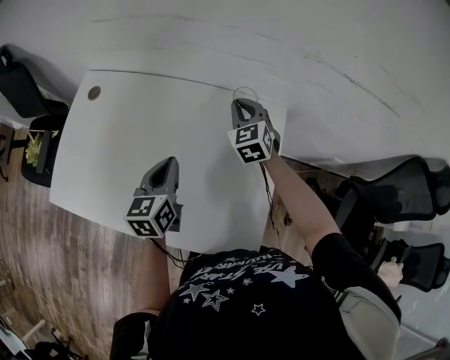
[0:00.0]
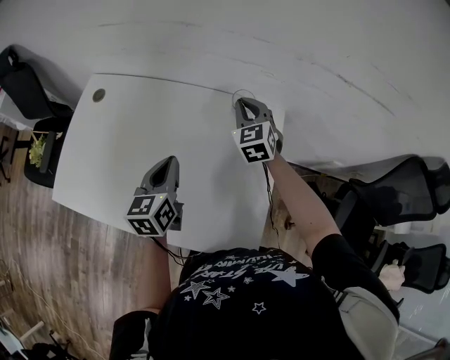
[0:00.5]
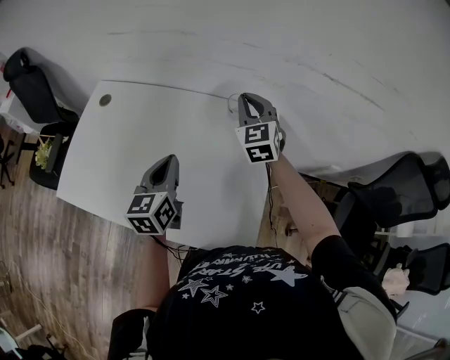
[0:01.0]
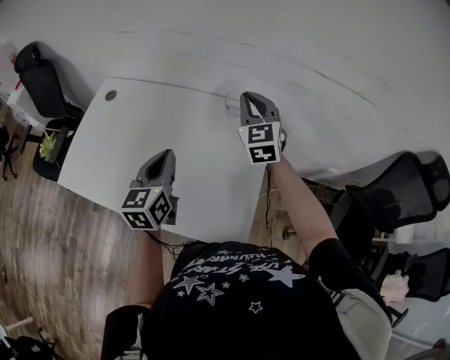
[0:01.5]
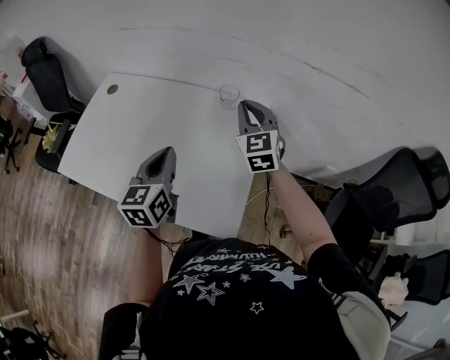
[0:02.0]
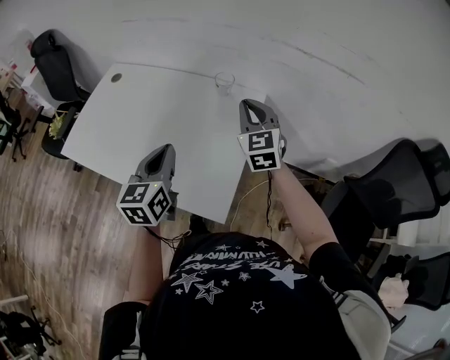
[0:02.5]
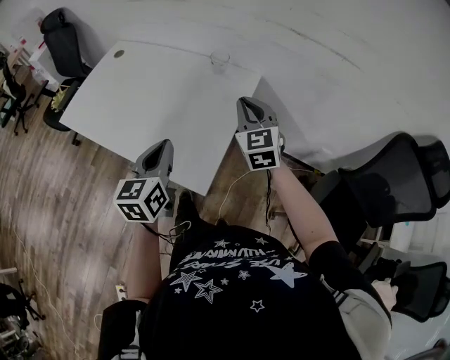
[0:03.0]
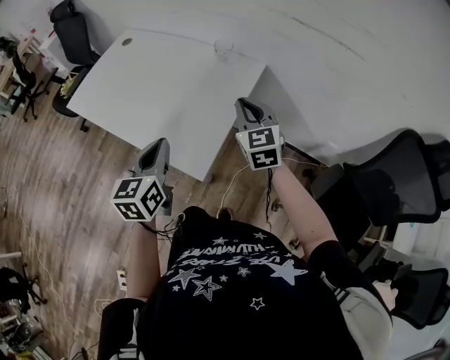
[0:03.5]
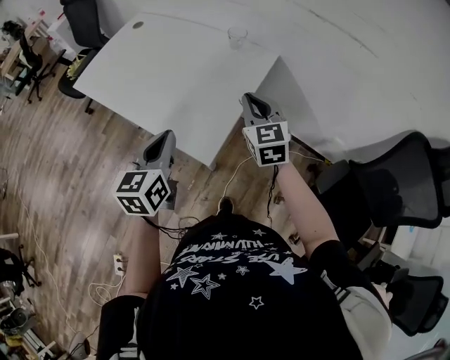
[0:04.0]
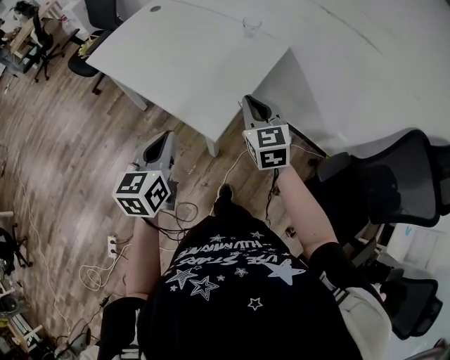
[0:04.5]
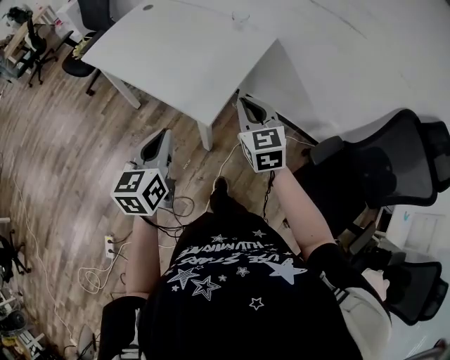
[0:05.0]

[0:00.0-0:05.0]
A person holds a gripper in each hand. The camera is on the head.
0:00.0 to 0:02.5: The left gripper heads backward, to the right and upward, covering roughly 25 cm, while the right gripper travels backward, upward and to the right by approximately 25 cm.
0:02.5 to 0:05.0: Both grippers travel together backward, some 30 cm.

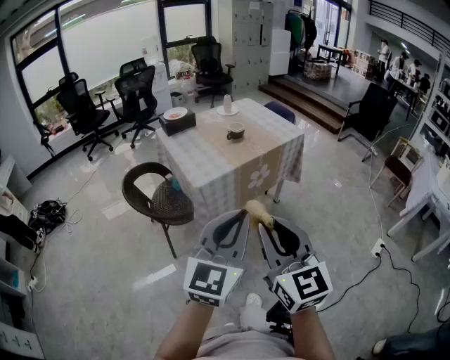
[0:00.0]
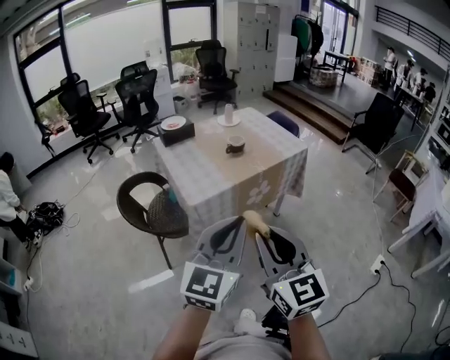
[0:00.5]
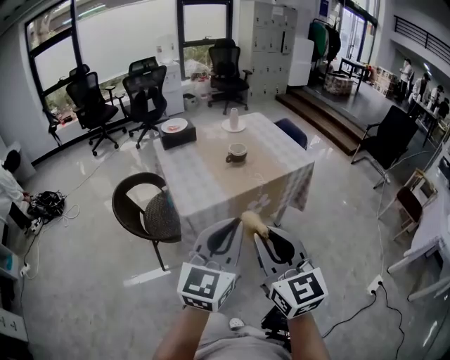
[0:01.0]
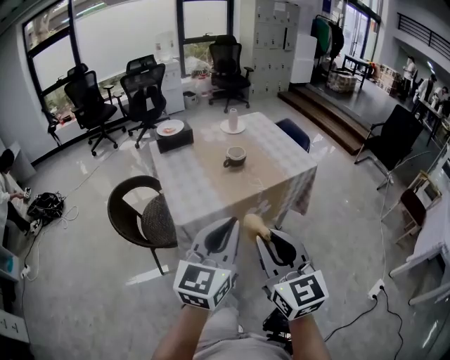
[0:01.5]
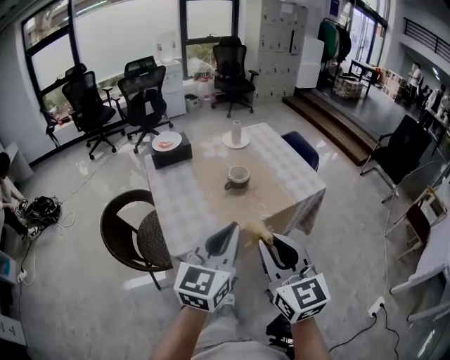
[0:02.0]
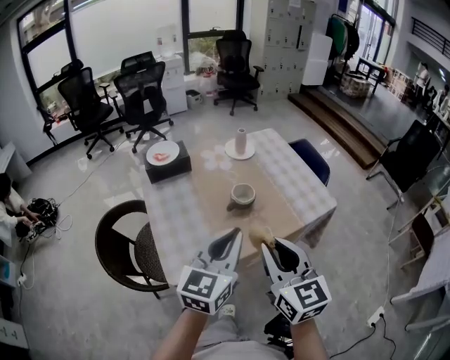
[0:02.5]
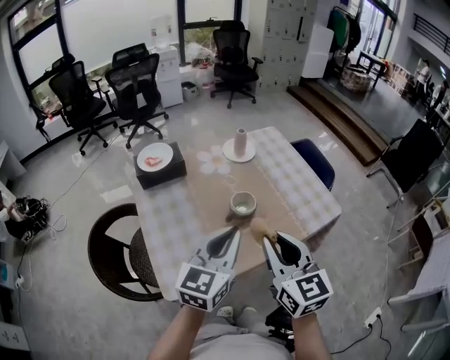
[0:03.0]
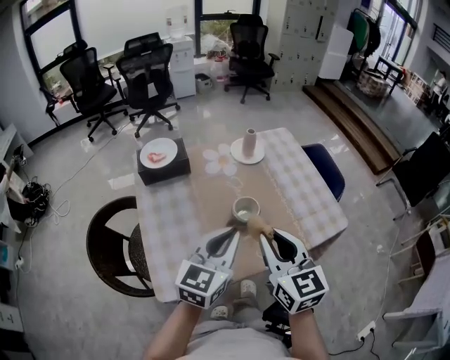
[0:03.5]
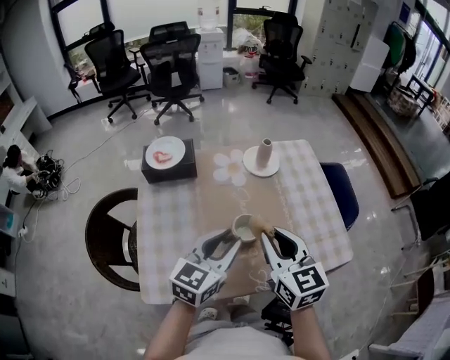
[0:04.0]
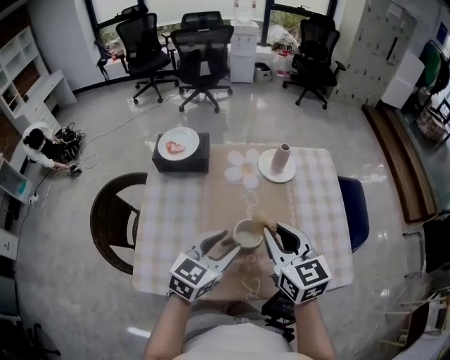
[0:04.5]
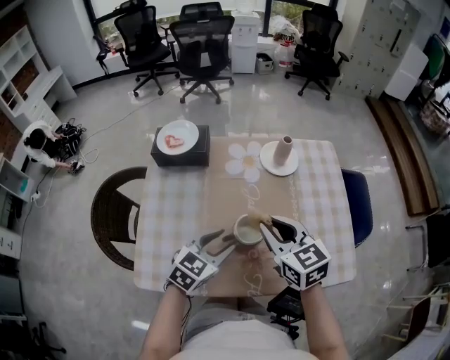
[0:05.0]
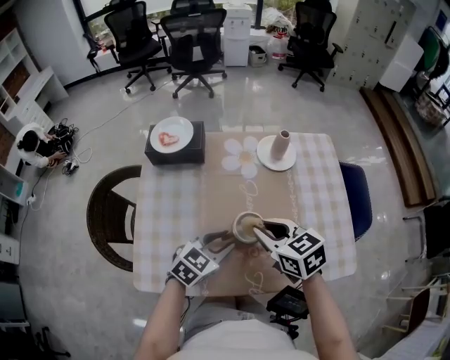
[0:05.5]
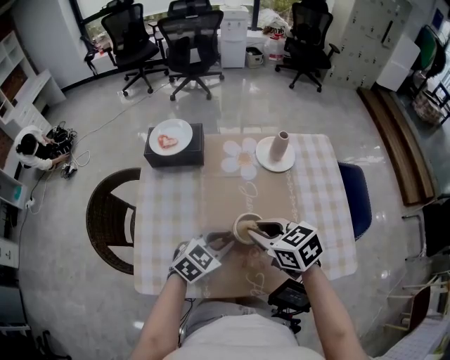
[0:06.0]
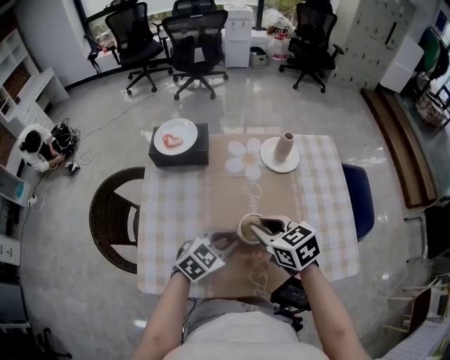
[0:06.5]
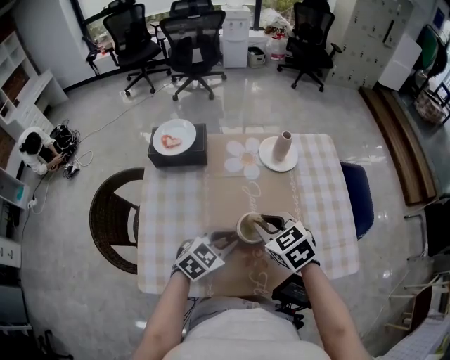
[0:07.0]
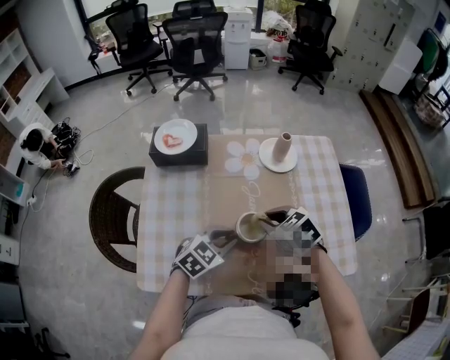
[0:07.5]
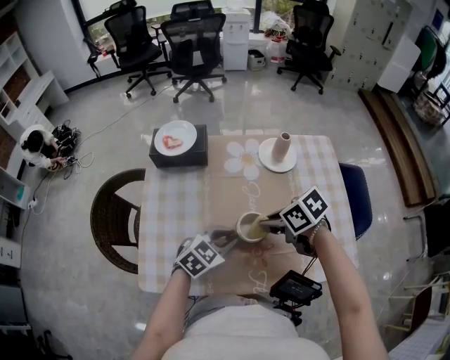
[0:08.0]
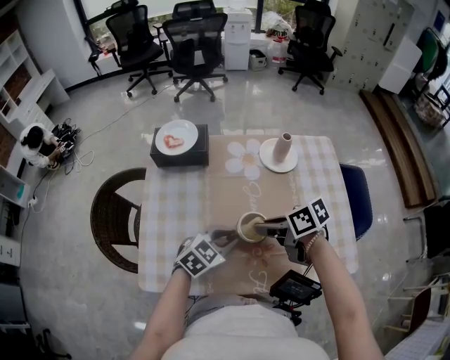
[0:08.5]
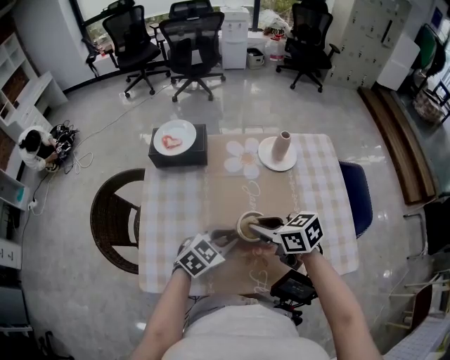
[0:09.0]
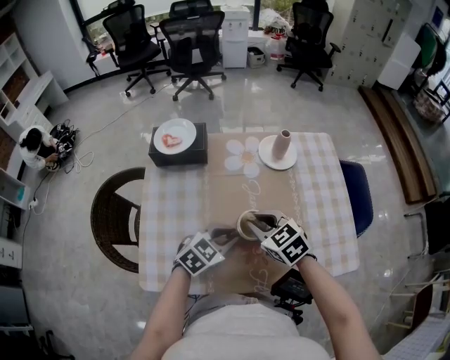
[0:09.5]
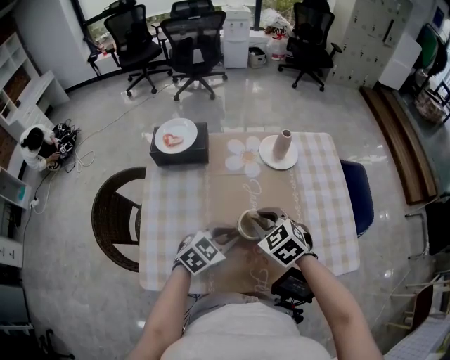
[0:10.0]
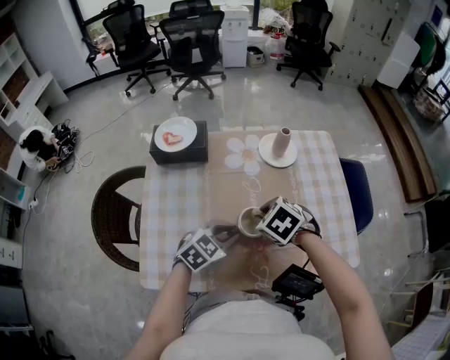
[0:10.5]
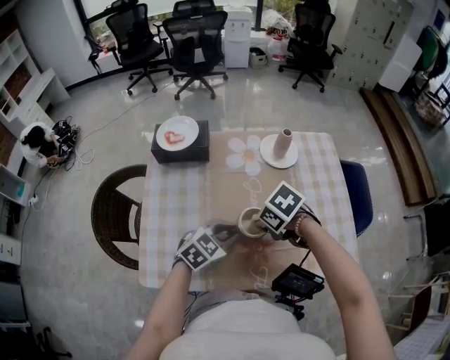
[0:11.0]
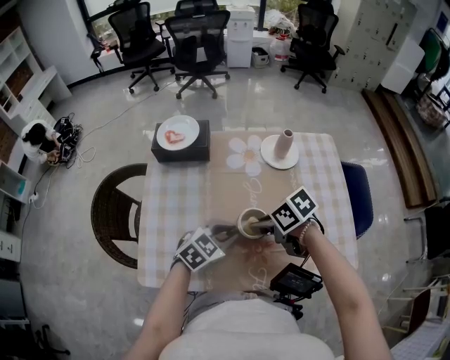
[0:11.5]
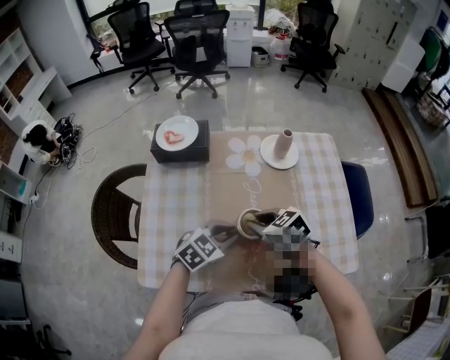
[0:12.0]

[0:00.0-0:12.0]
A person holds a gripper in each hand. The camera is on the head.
0:00.0 to 0:02.0: The two grippers go some 35 cm forward.
0:02.0 to 0:04.0: The two grippers go approximately 30 cm forward.
0:04.0 to 0:06.0: Both grippers move downward, some 10 cm. The left gripper swivels some 30 degrees, and opens and closes again. Meanwhile the right gripper turns by about 40 degrees.
0:06.0 to 0:08.0: The right gripper changes its angle by some 30 degrees.
0:08.0 to 0:10.0: The right gripper swivels some 40 degrees.
0:10.0 to 0:12.0: The right gripper changes its angle by roughly 20 degrees.

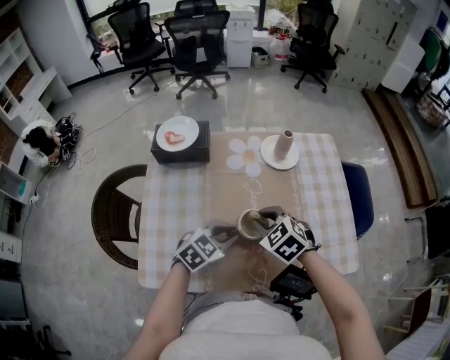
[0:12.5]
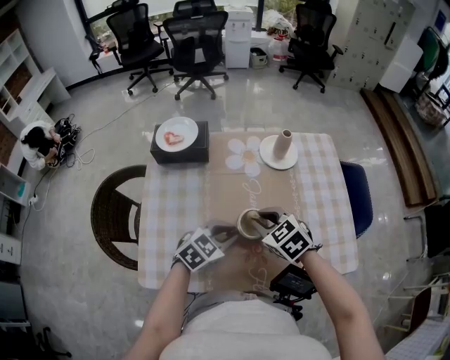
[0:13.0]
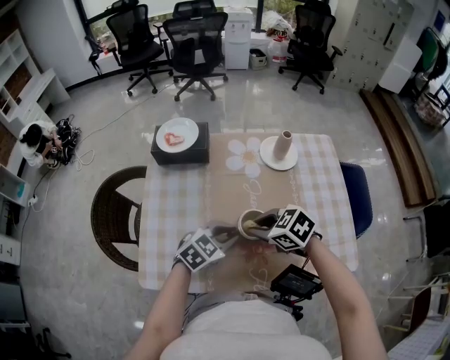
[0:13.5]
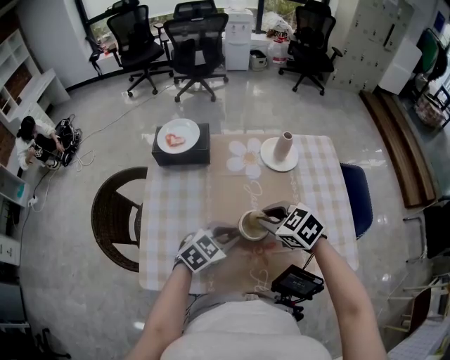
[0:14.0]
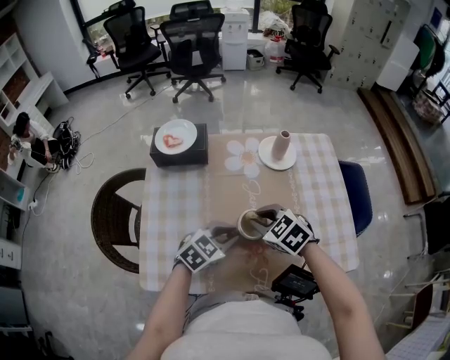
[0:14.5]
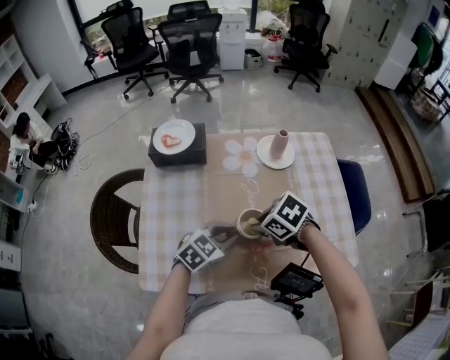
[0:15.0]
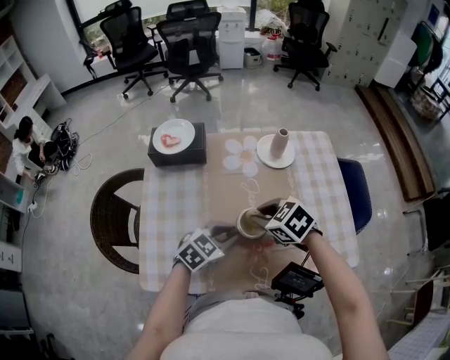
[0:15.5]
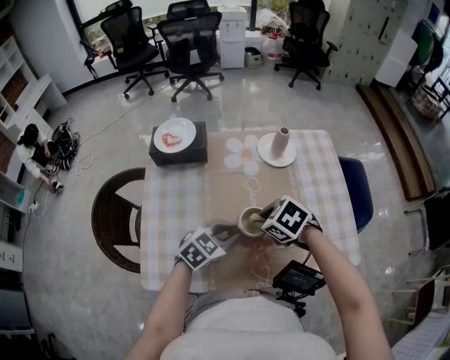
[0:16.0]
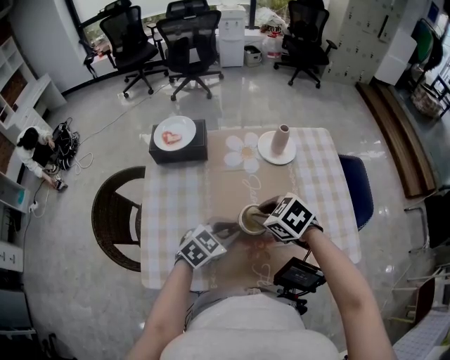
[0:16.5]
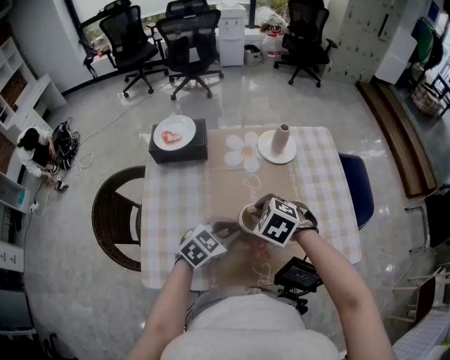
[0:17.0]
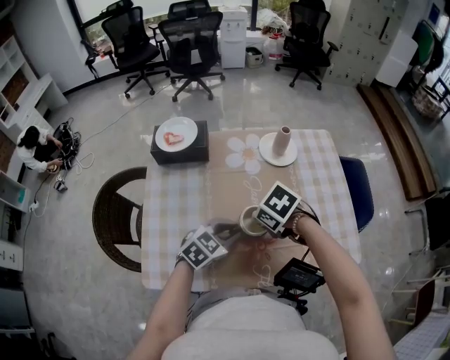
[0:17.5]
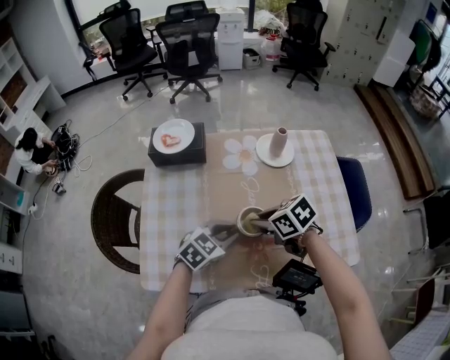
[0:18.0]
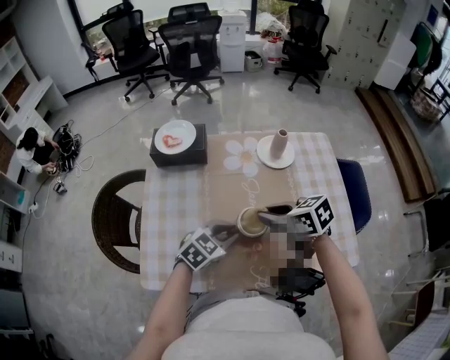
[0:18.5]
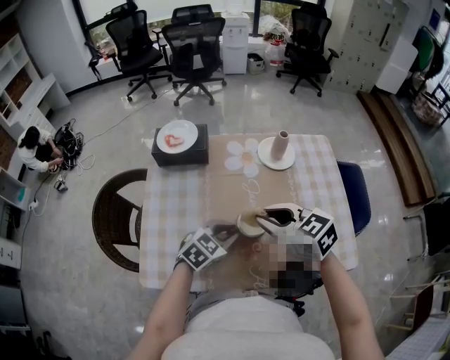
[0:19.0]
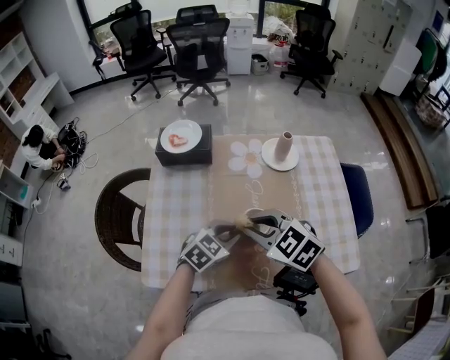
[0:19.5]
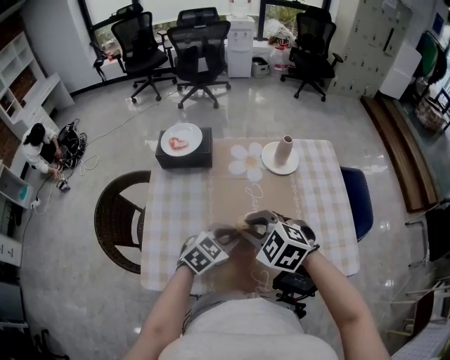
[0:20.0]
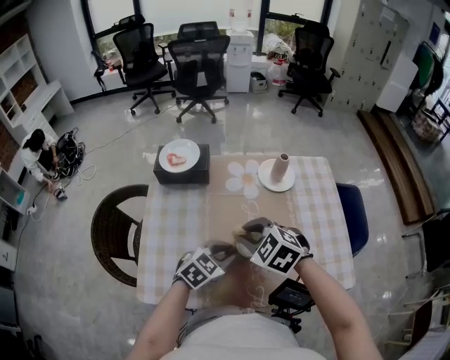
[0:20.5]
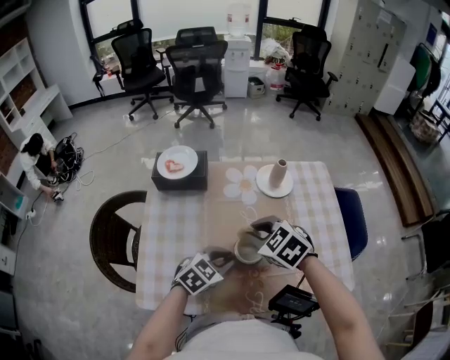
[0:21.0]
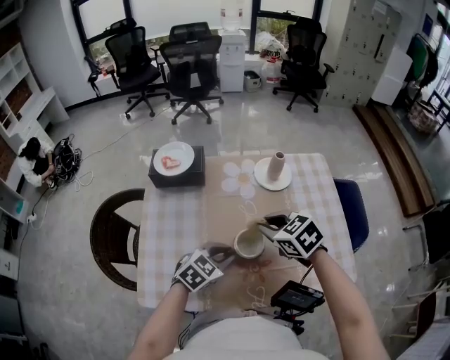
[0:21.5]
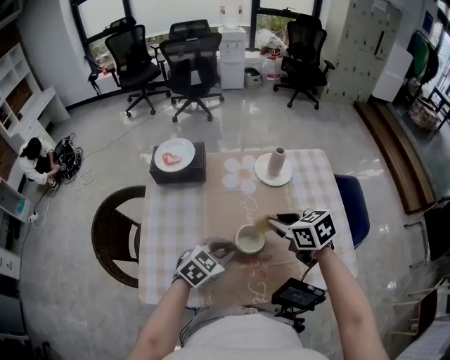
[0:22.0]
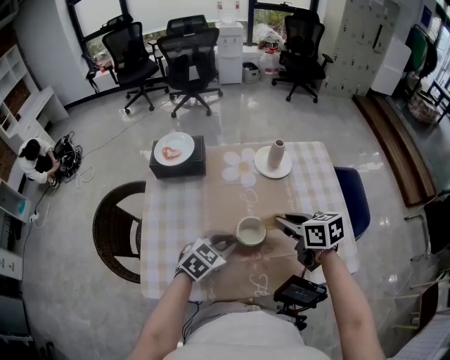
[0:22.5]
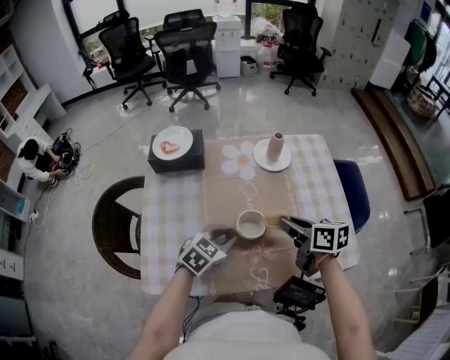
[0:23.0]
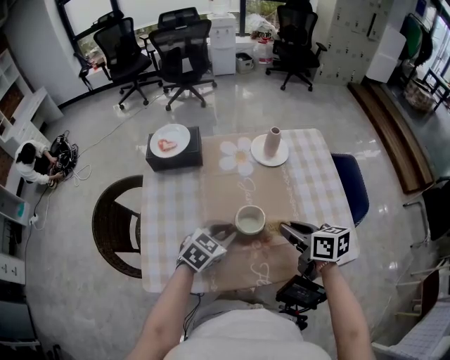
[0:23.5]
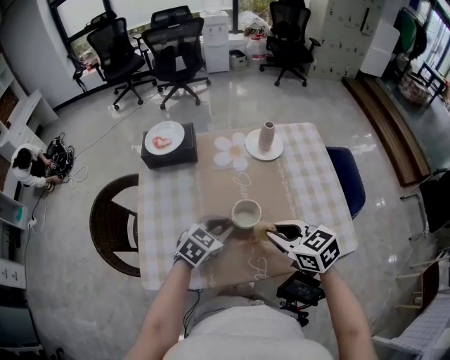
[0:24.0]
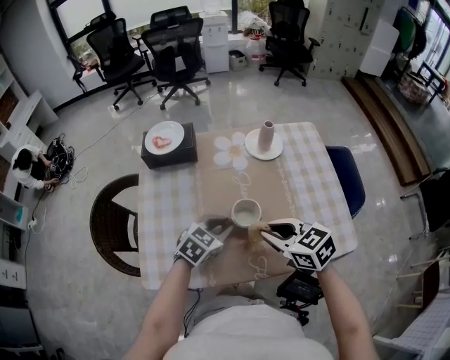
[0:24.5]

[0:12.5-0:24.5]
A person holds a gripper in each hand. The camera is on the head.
0:16.5 to 0:18.5: The right gripper swivels about 30 degrees.
0:18.5 to 0:20.5: The right gripper heads to the left, covering approximately 5 cm, and rolls counterclockwise, seen from behind, by about 40 degrees.
0:20.5 to 0:22.5: The right gripper moves to the right, roughly 10 cm, and rolls clockwise, seen from behind, by roughly 50 degrees.
0:22.5 to 0:24.5: The right gripper travels backward by about 10 cm, and changes its angle by about 20 degrees.
